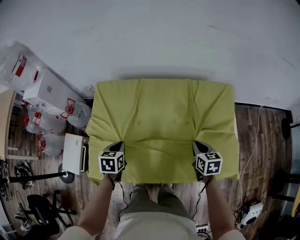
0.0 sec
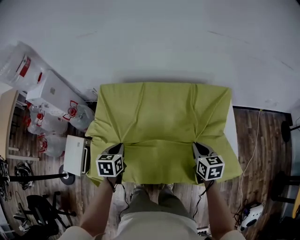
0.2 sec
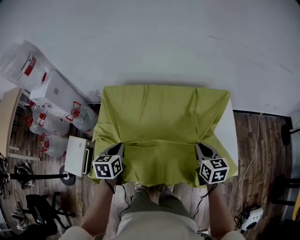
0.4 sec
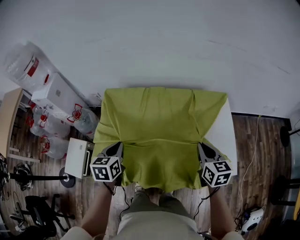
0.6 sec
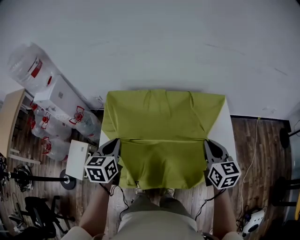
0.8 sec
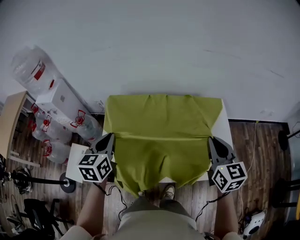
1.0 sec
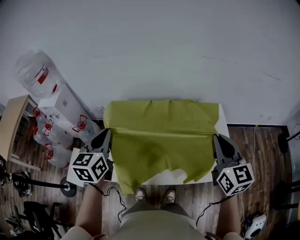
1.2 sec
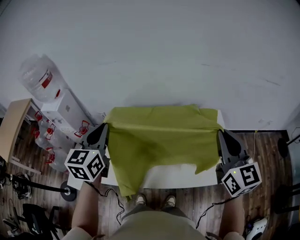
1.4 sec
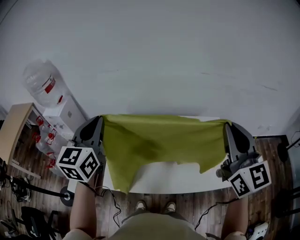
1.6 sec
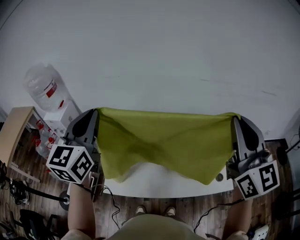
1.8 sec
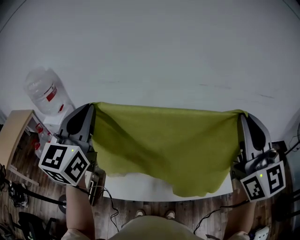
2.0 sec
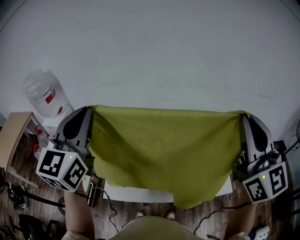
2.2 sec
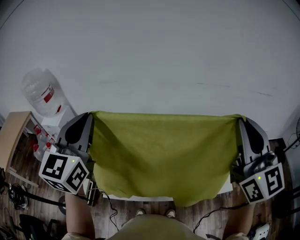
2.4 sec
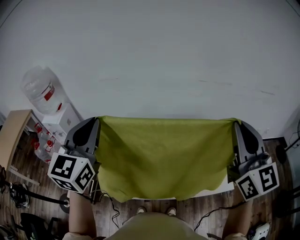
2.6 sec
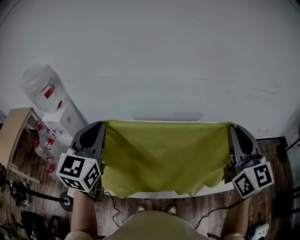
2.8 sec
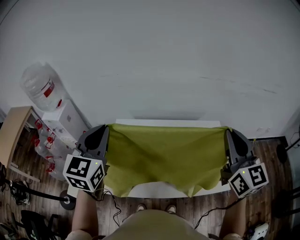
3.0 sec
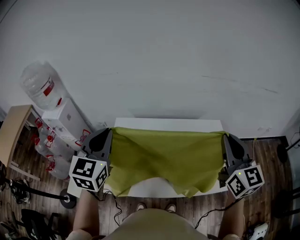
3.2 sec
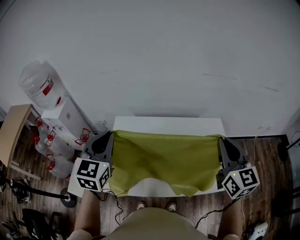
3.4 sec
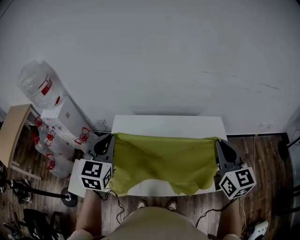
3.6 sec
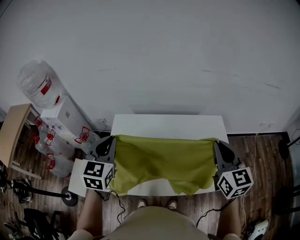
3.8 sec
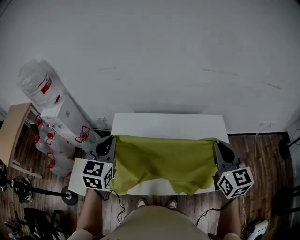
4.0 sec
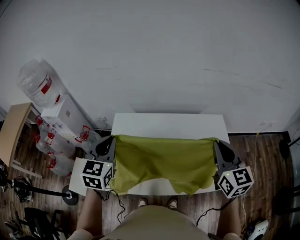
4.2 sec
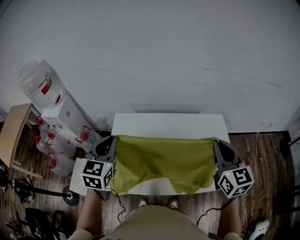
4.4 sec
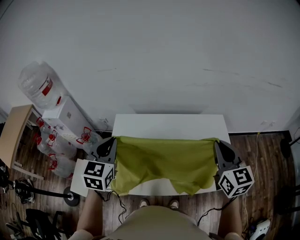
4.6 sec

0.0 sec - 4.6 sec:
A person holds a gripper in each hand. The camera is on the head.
0.0 sec - 1.6 sec: Both grippers travel together upward, some 50 cm. The right gripper angles its fingers upward, by some 50 degrees. Meanwhile the left gripper points its fingers approximately 50 degrees further upward.
1.6 sec - 3.0 sec: The left gripper goes upward and returns, about 15 cm each way. Meanwhile the right gripper travels upward and back again, some 10 cm each way.
3.0 sec - 4.6 sec: The two grippers go roughly 10 cm downward.

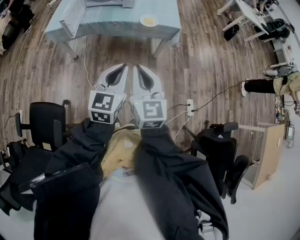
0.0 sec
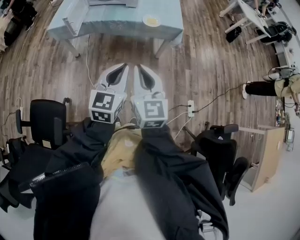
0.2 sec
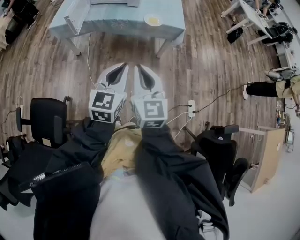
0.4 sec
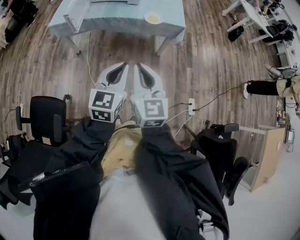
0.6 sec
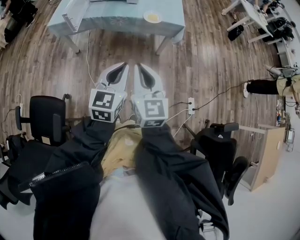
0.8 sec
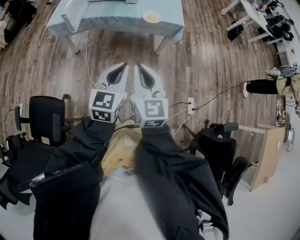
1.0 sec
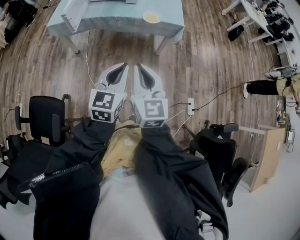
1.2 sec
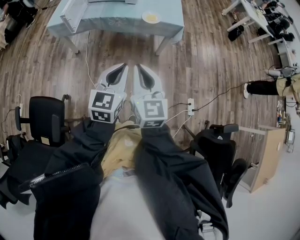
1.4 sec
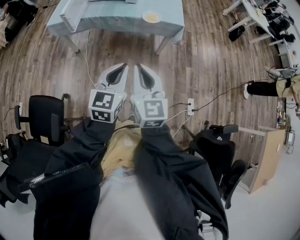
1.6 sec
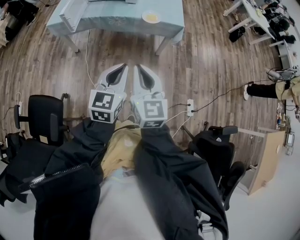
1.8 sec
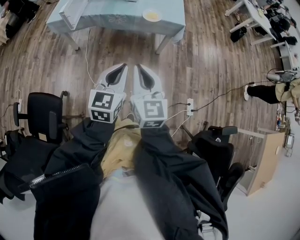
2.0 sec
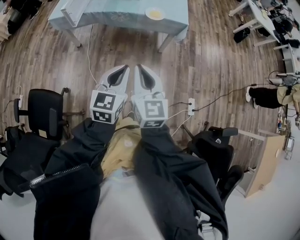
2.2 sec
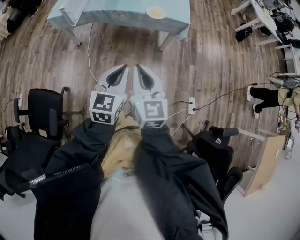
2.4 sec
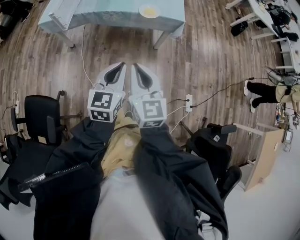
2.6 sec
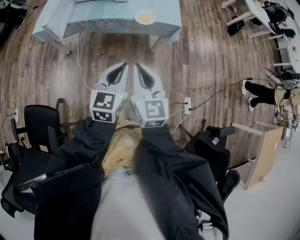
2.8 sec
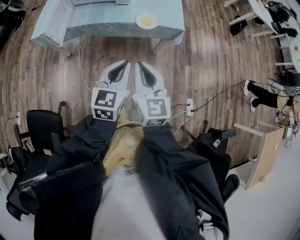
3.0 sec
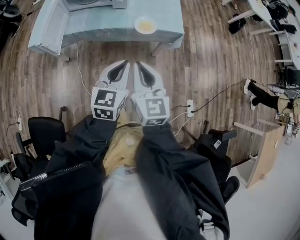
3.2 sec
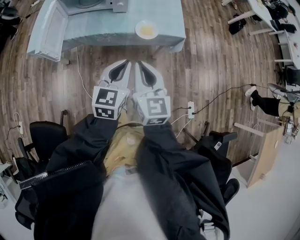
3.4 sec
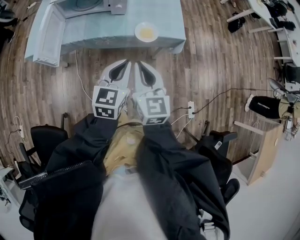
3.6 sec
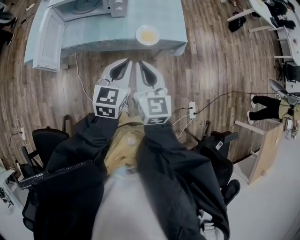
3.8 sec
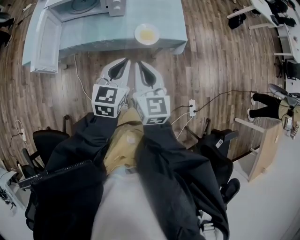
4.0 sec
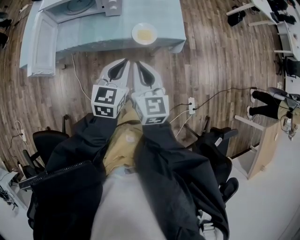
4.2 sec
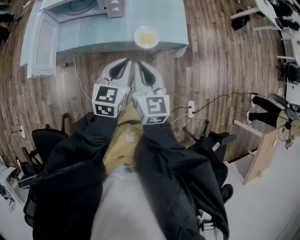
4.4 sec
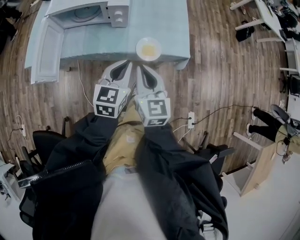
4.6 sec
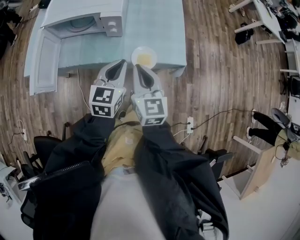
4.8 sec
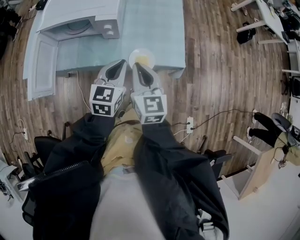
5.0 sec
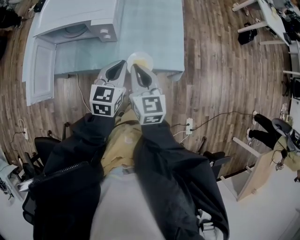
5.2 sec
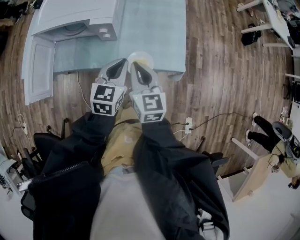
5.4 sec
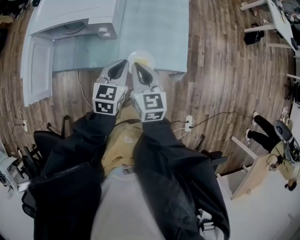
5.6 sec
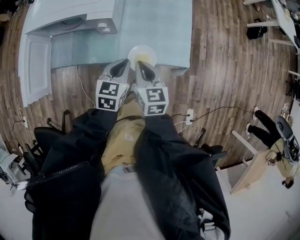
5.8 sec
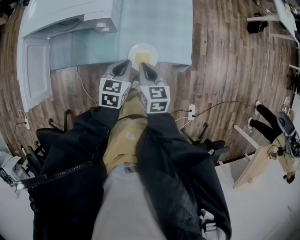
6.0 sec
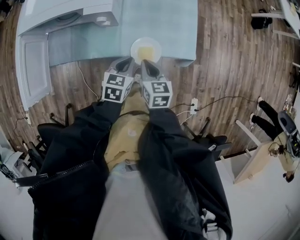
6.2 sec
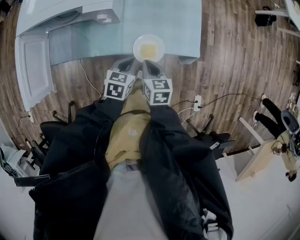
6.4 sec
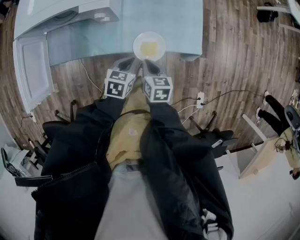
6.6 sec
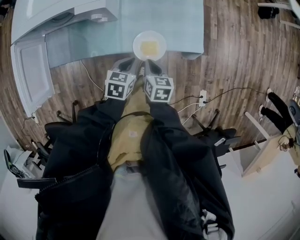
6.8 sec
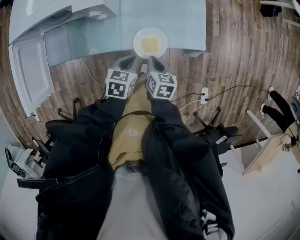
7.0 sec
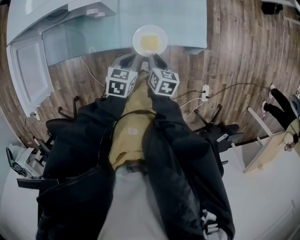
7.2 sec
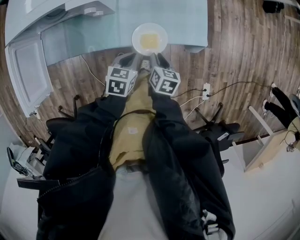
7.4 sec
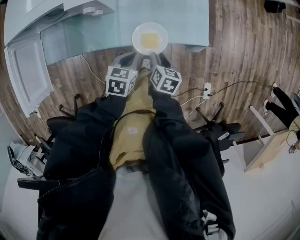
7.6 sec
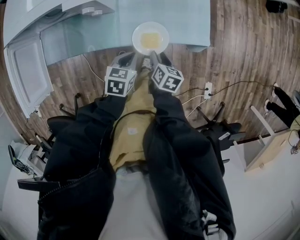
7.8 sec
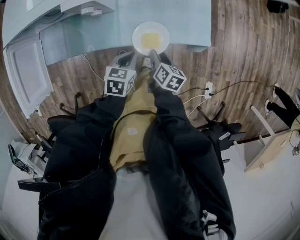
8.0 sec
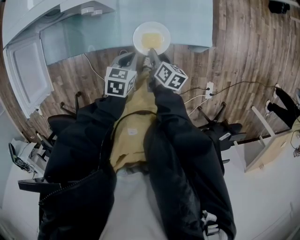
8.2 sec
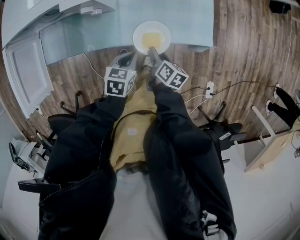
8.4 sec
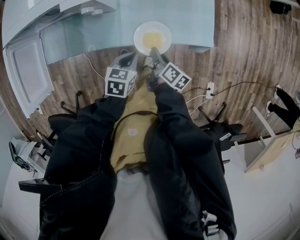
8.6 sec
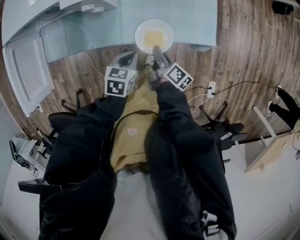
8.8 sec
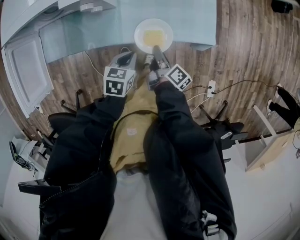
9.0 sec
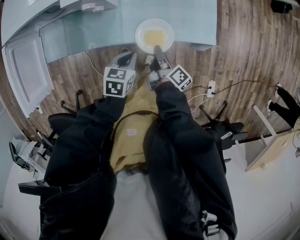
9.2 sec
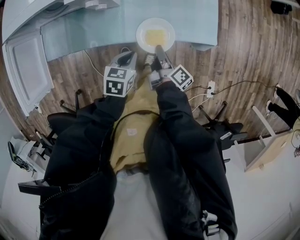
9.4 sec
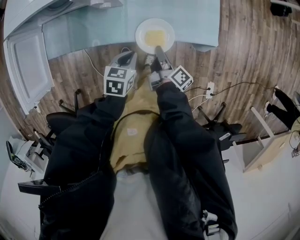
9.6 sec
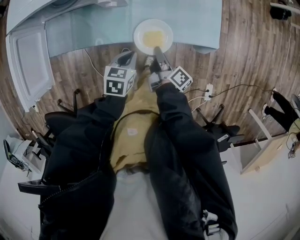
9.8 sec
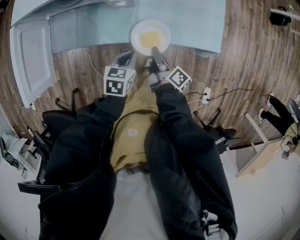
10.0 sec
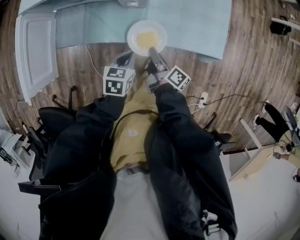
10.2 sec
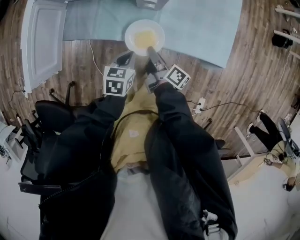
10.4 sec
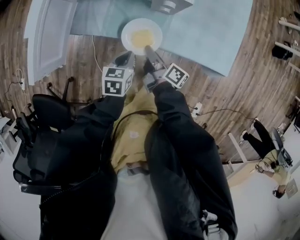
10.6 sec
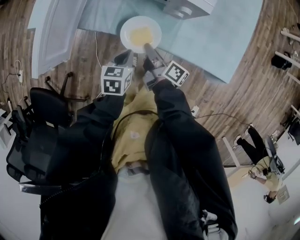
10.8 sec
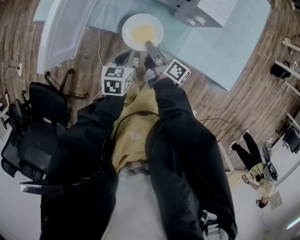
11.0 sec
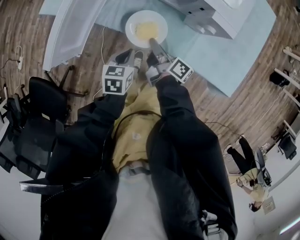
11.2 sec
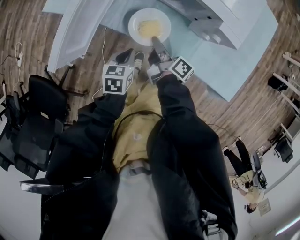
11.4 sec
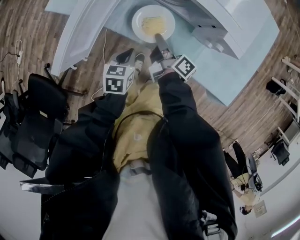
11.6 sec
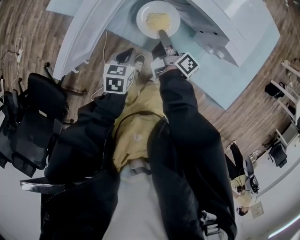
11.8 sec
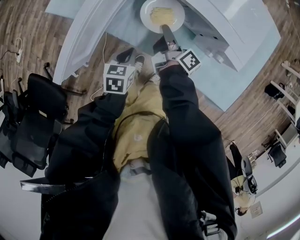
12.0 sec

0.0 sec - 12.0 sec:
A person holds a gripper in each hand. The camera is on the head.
0.0 sec - 1.6 sec: The grippers stay close to where they were, moving slightly.
1.6 sec - 3.0 sec: Both grippers move forward, some 15 cm.
3.0 sec - 4.4 sec: Both grippers travel together forward, roughly 20 cm.
4.4 sec - 6.0 sec: Both grippers travel together forward and downward, about 20 cm. The right gripper turns by some 20 degrees.
6.0 sec - 7.6 sec: Both grippers move downward, some 15 cm. The right gripper swivels roughly 30 degrees, and opens.
7.6 sec - 9.0 sec: The right gripper twists some 40 degrees clockwise, seen from behind, and closes up.
9.0 sec - 10.4 sec: The two grippers go about 15 cm to the left. The right gripper swivels roughly 20 degrees.
10.4 sec - 12.0 sec: The left gripper moves to the left and forward, about 20 cm, and rotates roughly 20 degrees, while the right gripper travels forward and to the left by roughly 25 cm.

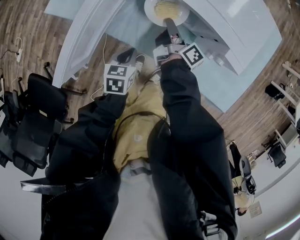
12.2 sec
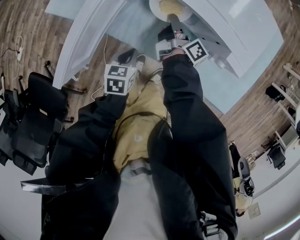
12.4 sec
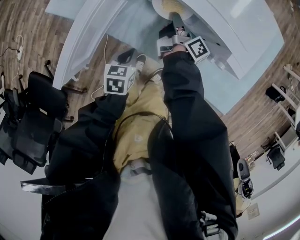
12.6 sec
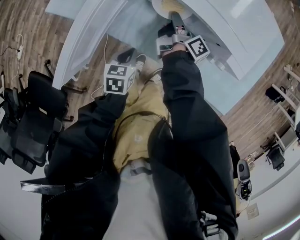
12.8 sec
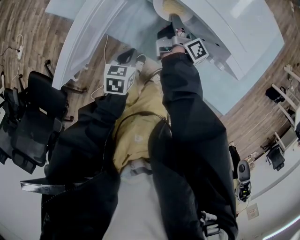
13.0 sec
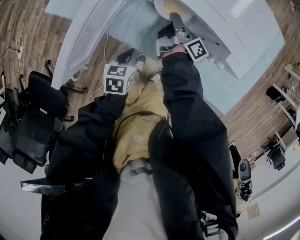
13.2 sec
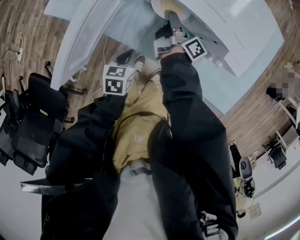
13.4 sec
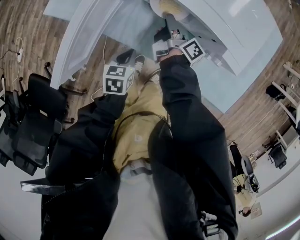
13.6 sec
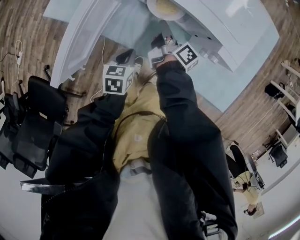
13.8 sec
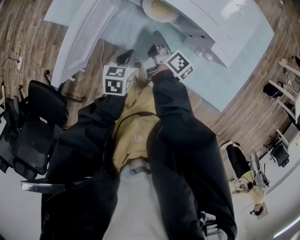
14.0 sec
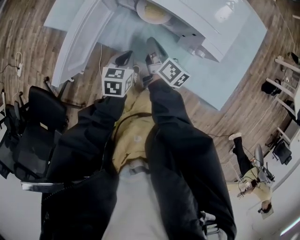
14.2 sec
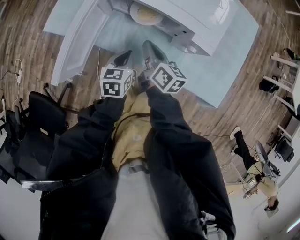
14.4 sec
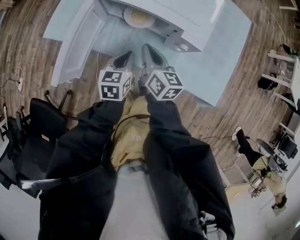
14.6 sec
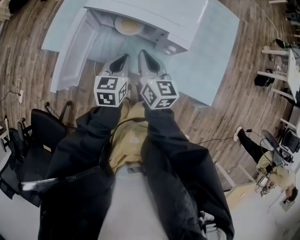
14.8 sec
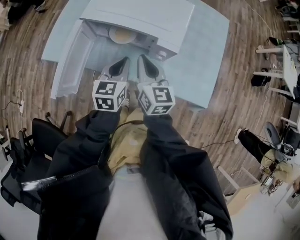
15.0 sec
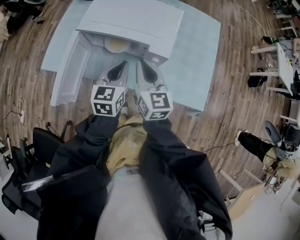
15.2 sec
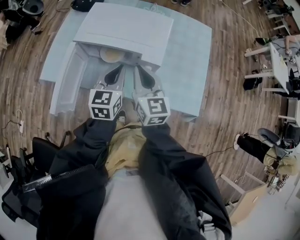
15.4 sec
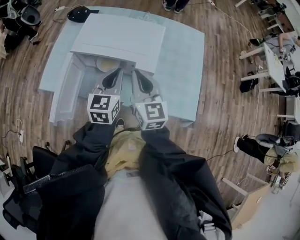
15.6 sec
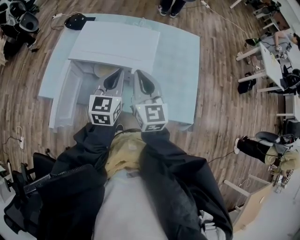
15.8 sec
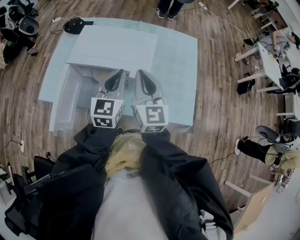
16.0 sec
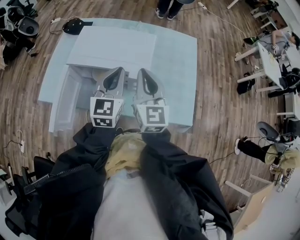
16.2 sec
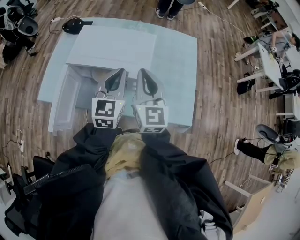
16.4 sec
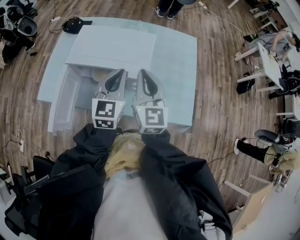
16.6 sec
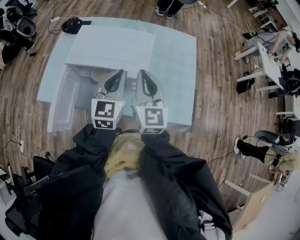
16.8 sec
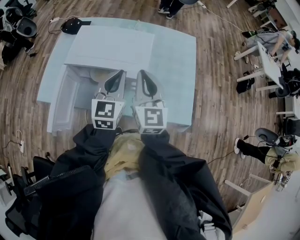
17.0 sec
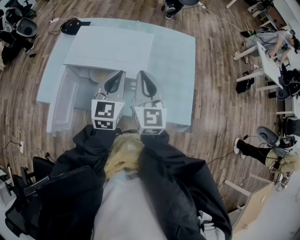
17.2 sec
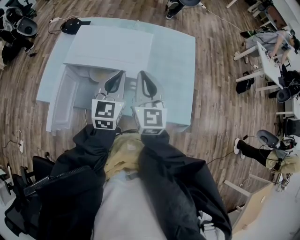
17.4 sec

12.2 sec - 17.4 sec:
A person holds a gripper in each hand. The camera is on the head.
12.2 sec - 14.0 sec: The right gripper opens, then closes once more.
14.0 sec - 15.6 sec: Both grippers move upward and to the right, approximately 30 cm. The right gripper rotates around the line of its fingers by roughly 60 degrees, counterclockwise from behind. The left gripper angles its fingers upward, by approximately 30 degrees.
15.6 sec - 17.4 sec: The two grippers go roughly 5 cm to the right.

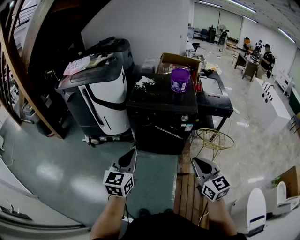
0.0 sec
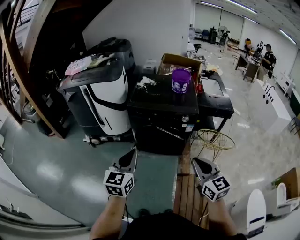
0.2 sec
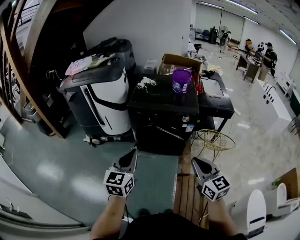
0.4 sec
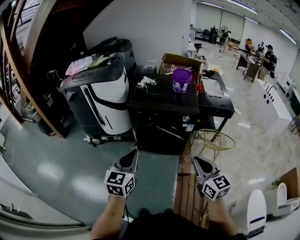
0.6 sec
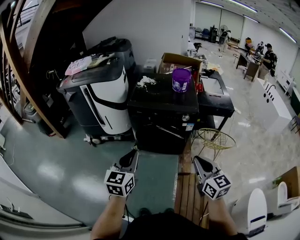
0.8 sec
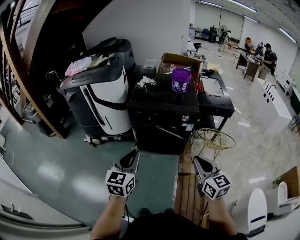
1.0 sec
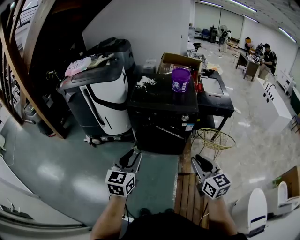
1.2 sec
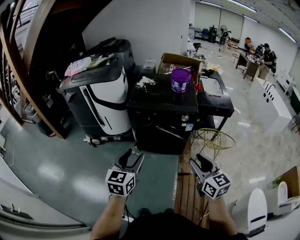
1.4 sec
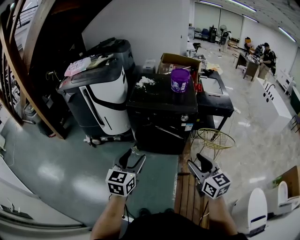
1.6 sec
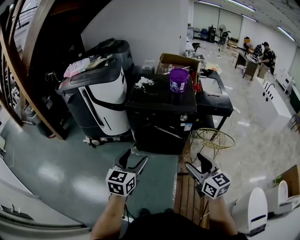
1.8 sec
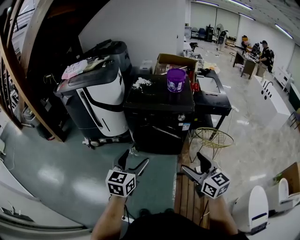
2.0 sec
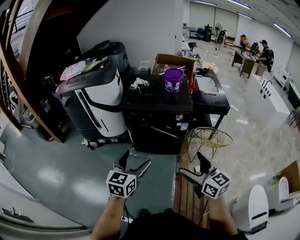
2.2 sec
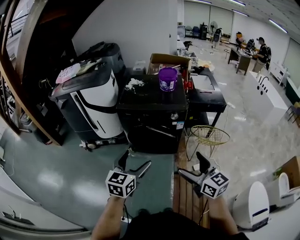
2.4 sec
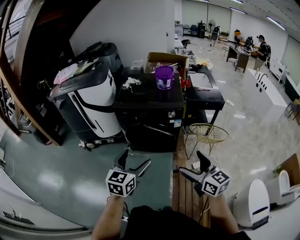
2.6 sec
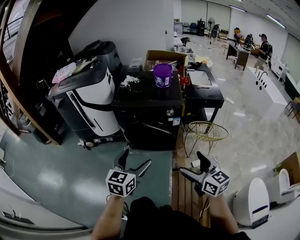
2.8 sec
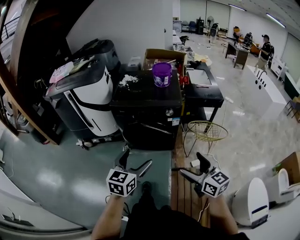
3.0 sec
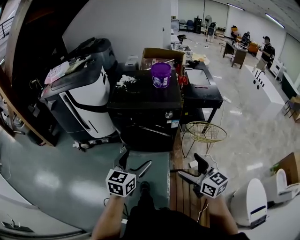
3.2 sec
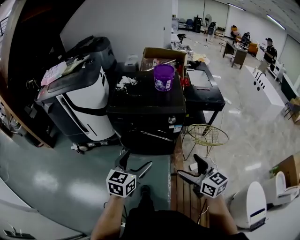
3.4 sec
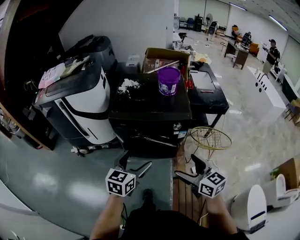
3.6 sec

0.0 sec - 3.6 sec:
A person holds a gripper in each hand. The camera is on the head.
0.0 sec - 1.8 sec: The right gripper opens; the left gripper opens up.
1.8 sec - 3.6 sec: Both grippers travel together forward, approximately 15 cm. The right gripper opens up.
